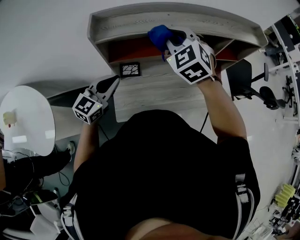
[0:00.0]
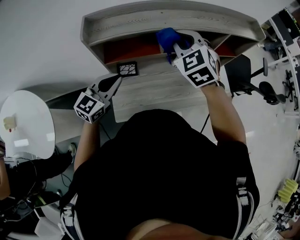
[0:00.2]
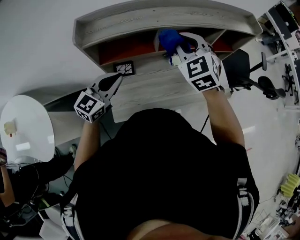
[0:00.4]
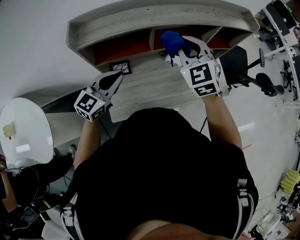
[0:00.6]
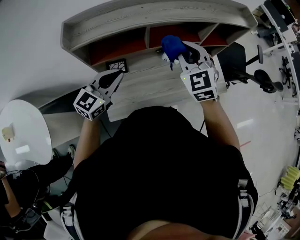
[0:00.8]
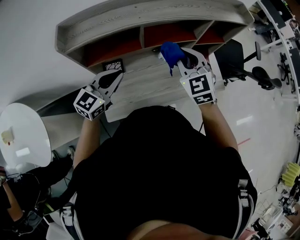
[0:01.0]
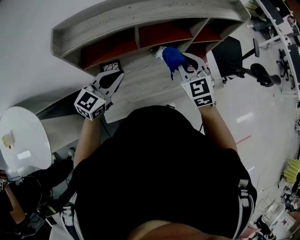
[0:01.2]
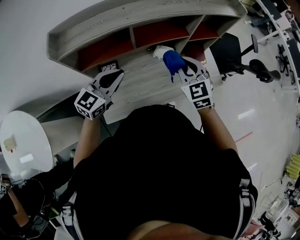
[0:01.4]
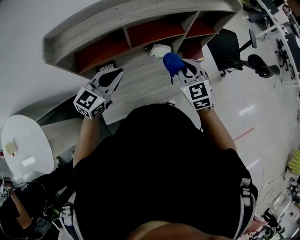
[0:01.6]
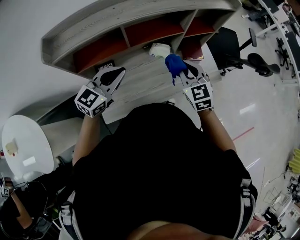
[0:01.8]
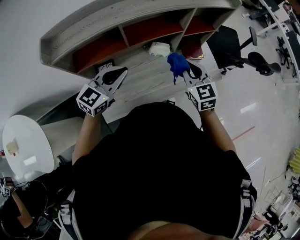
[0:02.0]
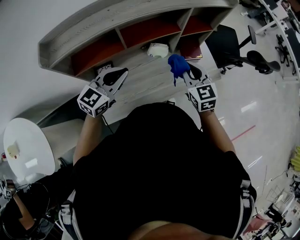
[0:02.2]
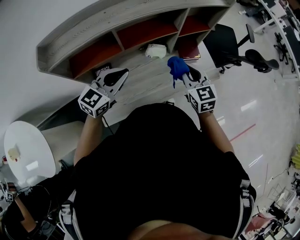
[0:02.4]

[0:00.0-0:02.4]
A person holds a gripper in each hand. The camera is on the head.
0:00.0 to 0:01.2: The right gripper moves to the right and downward, about 20 cm, and turns by approximately 20 degrees; the left gripper moves to the right and forward, roughly 15 cm.
0:01.2 to 0:02.4: The left gripper goes some 5 cm to the right, while the right gripper goes approximately 10 cm to the right and downward, and changes its angle by some 20 degrees.

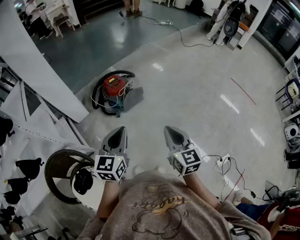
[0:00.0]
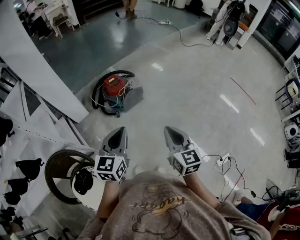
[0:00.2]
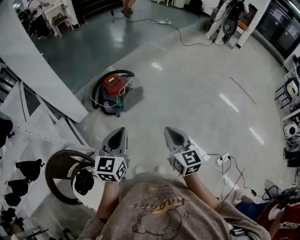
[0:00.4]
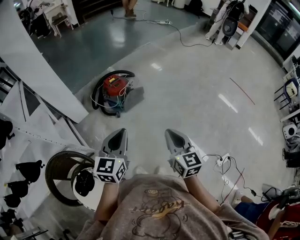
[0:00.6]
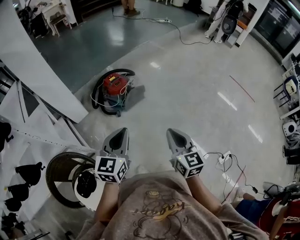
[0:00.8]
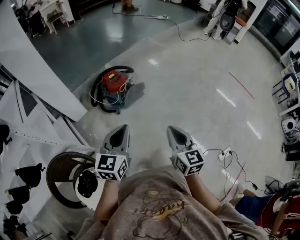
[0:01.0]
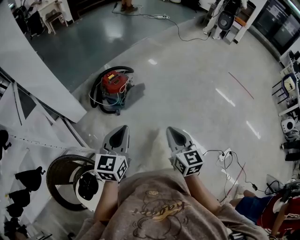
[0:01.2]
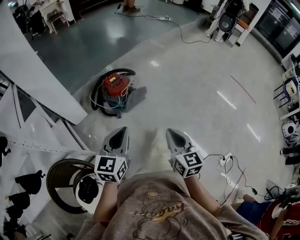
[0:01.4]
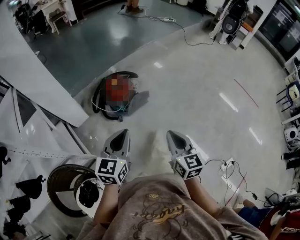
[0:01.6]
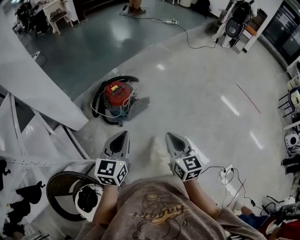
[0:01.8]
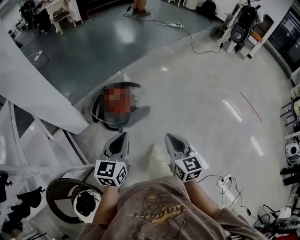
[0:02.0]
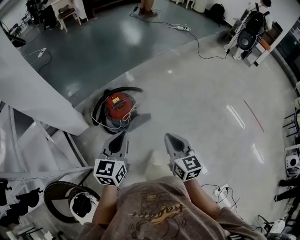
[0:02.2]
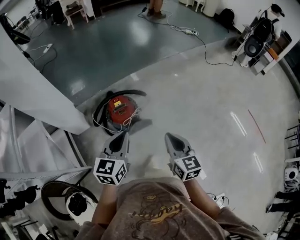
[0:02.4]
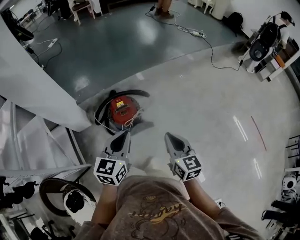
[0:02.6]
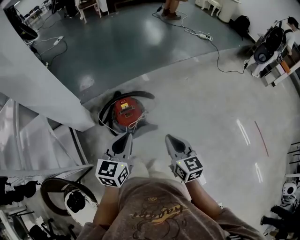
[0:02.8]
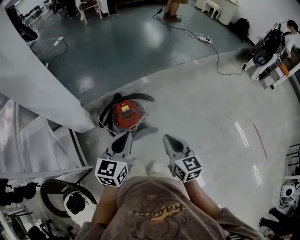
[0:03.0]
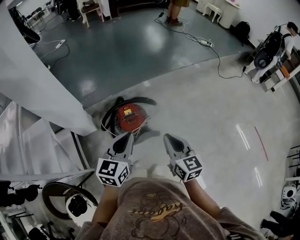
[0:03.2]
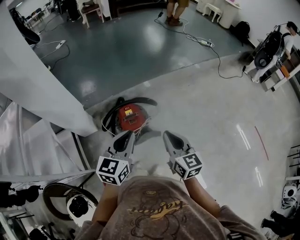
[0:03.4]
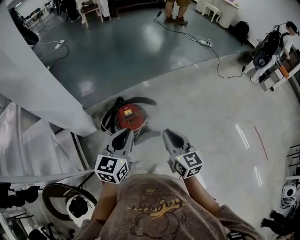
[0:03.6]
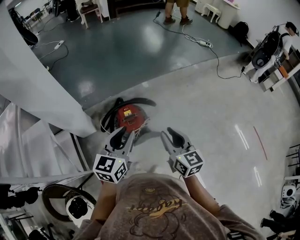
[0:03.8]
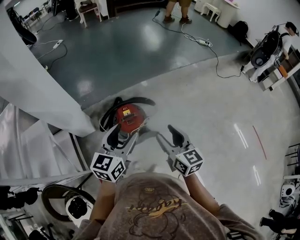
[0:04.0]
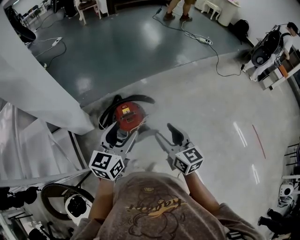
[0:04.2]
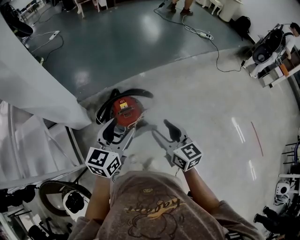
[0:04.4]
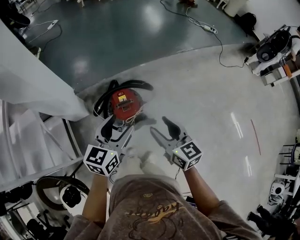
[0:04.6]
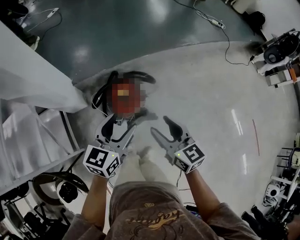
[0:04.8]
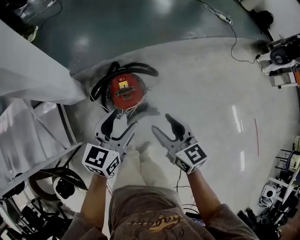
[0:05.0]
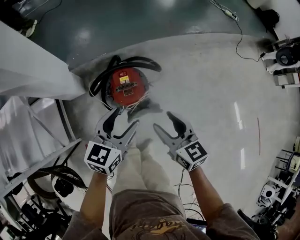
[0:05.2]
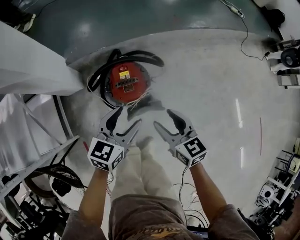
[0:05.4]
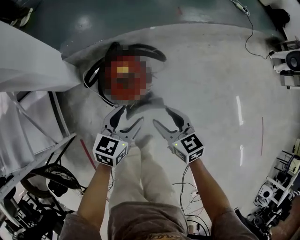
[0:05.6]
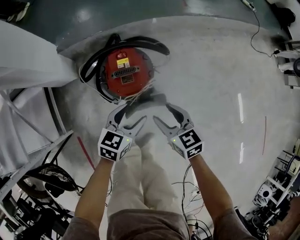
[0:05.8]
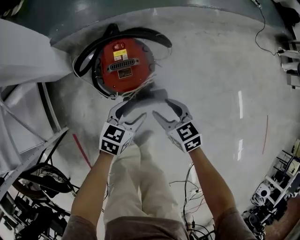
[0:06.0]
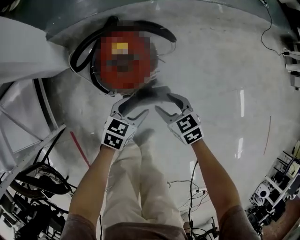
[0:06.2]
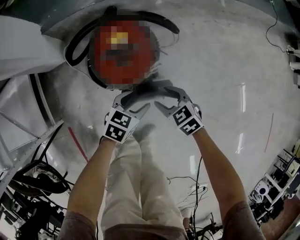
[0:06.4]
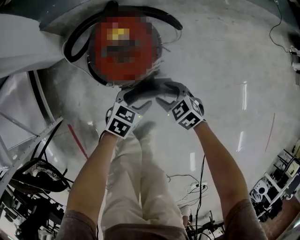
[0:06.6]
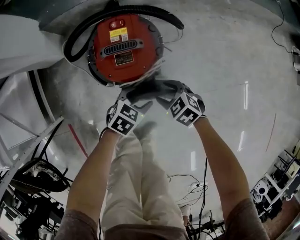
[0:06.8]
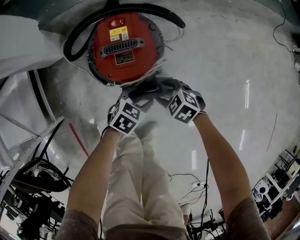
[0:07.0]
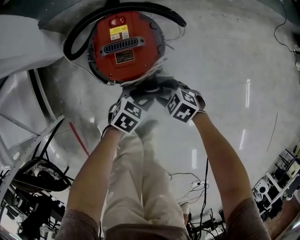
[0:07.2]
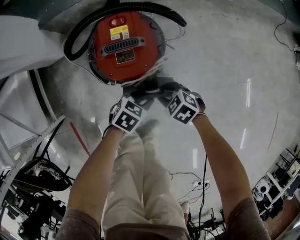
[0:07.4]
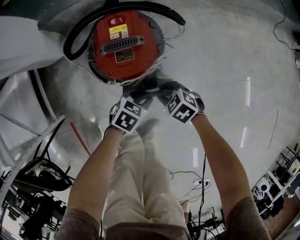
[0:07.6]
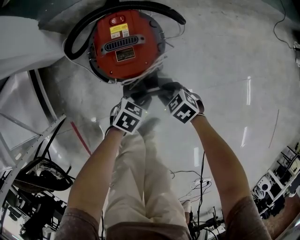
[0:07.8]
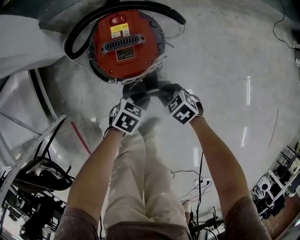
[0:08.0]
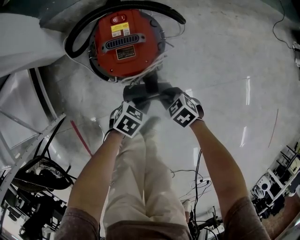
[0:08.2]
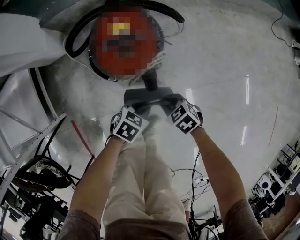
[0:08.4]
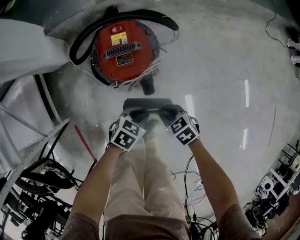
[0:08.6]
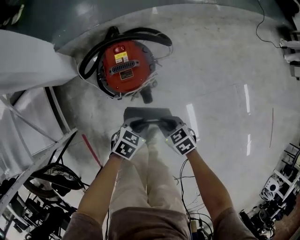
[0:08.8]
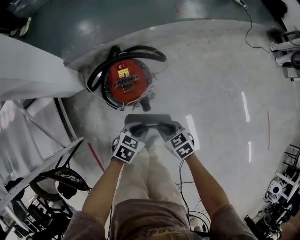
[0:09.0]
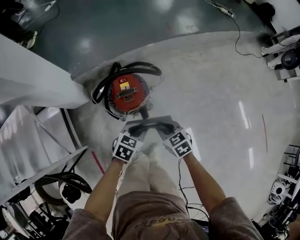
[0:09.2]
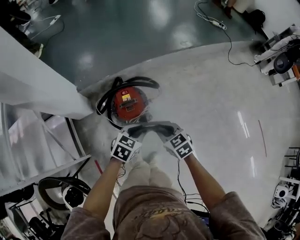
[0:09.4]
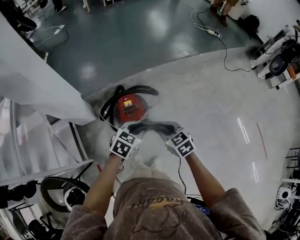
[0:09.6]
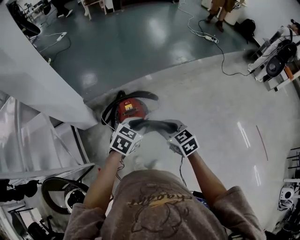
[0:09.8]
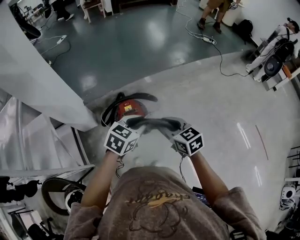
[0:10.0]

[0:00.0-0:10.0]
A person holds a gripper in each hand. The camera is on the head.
0:00.0 to 0:01.4: The right gripper goes some 5 cm to the left. Meanwhile the left gripper heads to the left and forward, covering some 10 cm.
0:01.4 to 0:02.8: The grippers both shift forward by some 30 cm. The right gripper rotates some 20 degrees.
0:02.8 to 0:04.2: The left gripper heads forward, covering approximately 5 cm, and opens, while the right gripper shifts some 10 cm forward and to the left, and opens up.
0:04.2 to 0:05.8: Both grippers travel together downward, approximately 35 cm. The right gripper swivels approximately 30 degrees, while the left gripper swivels about 30 degrees.
0:05.8 to 0:07.2: Both grippers travel together downward, roughly 25 cm. The right gripper turns by about 50 degrees; the left gripper swivels some 30 degrees.
0:07.2 to 0:08.6: The right gripper moves some 10 cm, turns by approximately 20 degrees, and closes. The left gripper shifts by roughly 10 cm, and closes.
0:08.6 to 0:10.0: The grippers both shift upward by roughly 50 cm. The right gripper tilts its fingers about 30 degrees upward. The left gripper changes its angle by approximately 30 degrees.

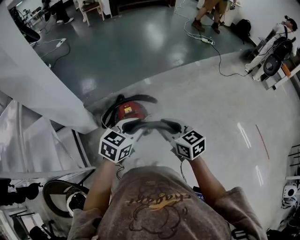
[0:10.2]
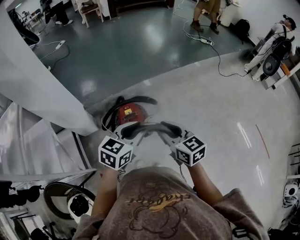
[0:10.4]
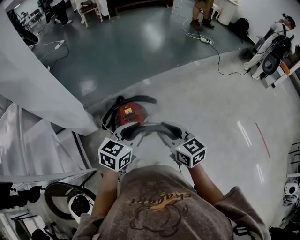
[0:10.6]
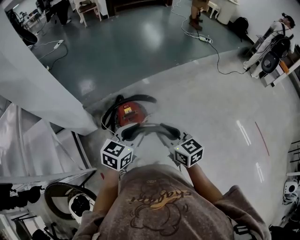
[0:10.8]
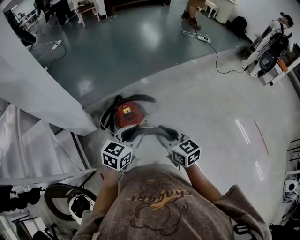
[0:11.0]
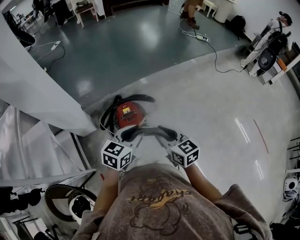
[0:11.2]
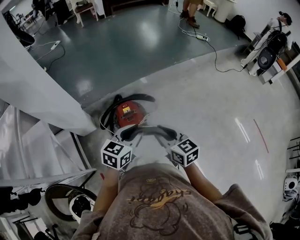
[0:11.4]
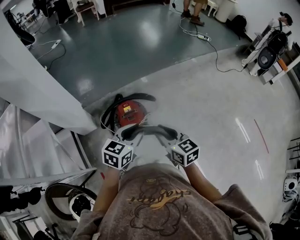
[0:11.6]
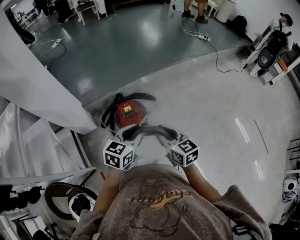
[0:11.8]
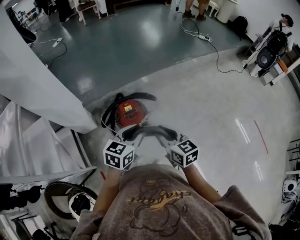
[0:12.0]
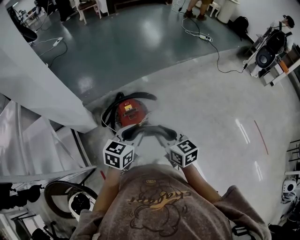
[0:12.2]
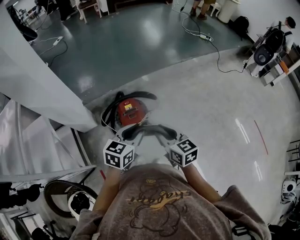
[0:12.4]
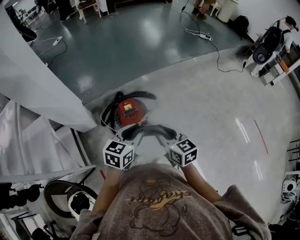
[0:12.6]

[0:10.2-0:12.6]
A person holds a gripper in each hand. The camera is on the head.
0:10.2 to 0:12.6: The grippers make only small movements.

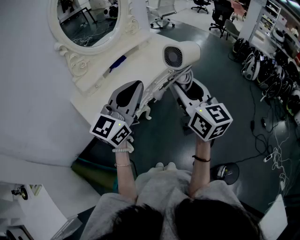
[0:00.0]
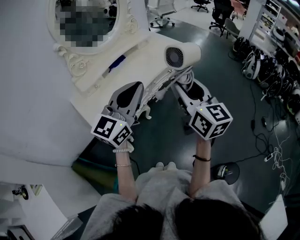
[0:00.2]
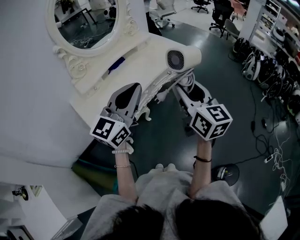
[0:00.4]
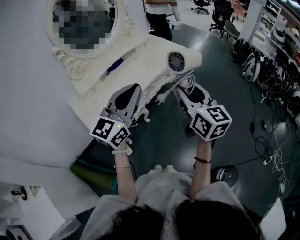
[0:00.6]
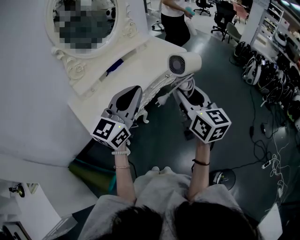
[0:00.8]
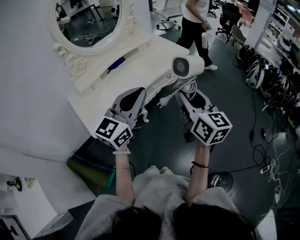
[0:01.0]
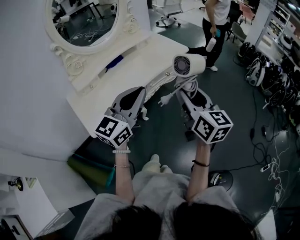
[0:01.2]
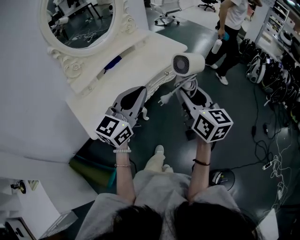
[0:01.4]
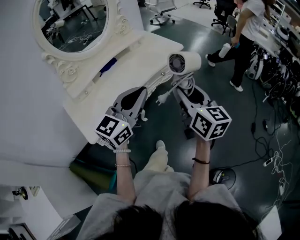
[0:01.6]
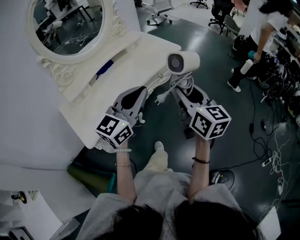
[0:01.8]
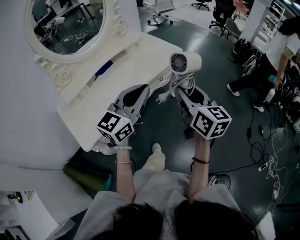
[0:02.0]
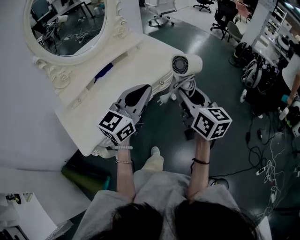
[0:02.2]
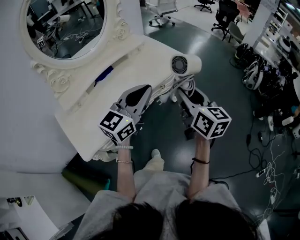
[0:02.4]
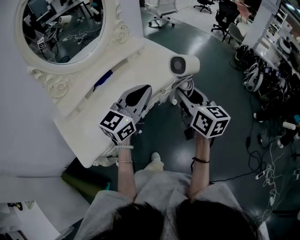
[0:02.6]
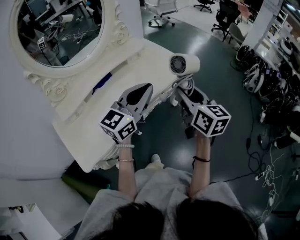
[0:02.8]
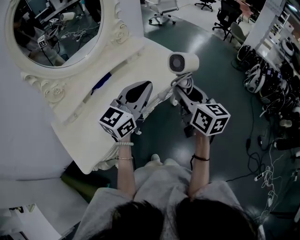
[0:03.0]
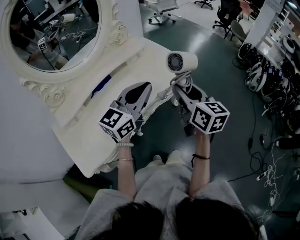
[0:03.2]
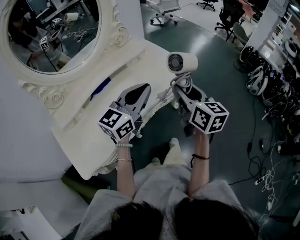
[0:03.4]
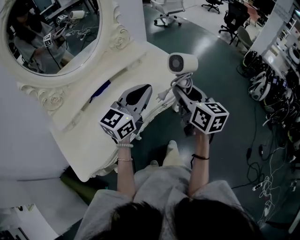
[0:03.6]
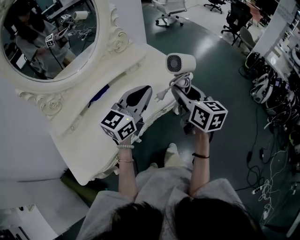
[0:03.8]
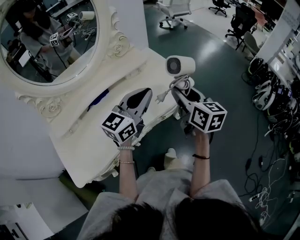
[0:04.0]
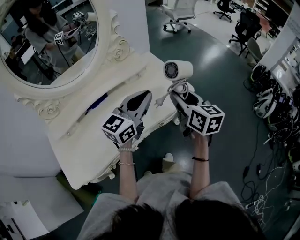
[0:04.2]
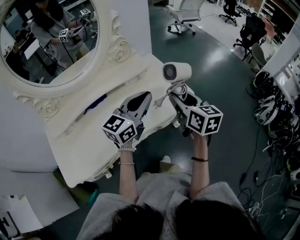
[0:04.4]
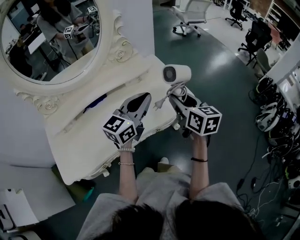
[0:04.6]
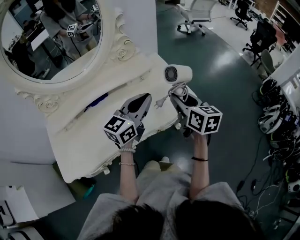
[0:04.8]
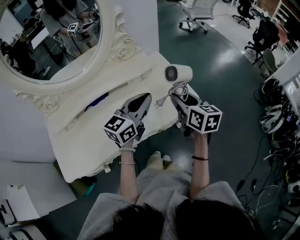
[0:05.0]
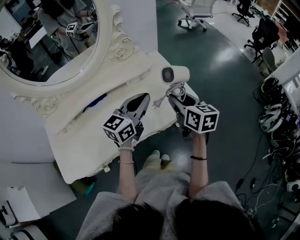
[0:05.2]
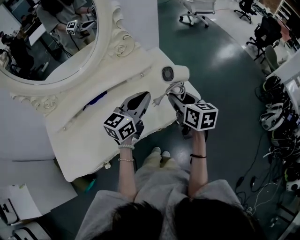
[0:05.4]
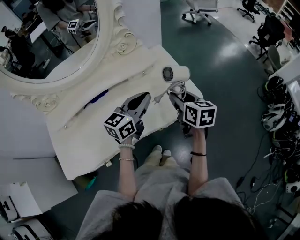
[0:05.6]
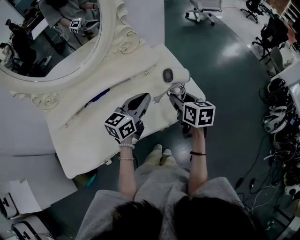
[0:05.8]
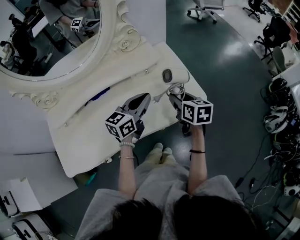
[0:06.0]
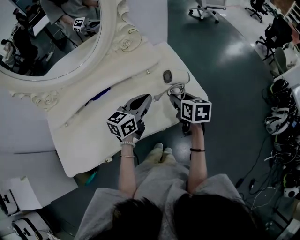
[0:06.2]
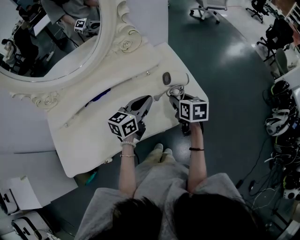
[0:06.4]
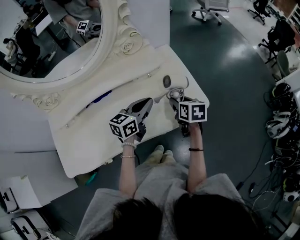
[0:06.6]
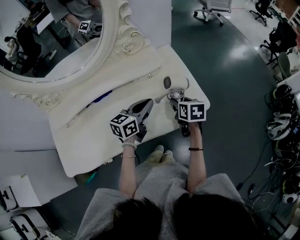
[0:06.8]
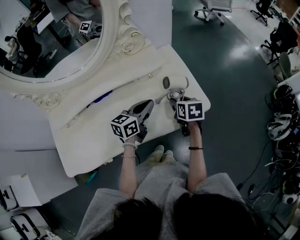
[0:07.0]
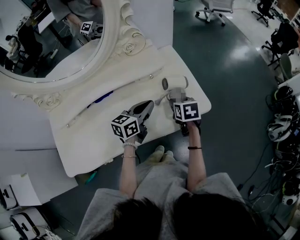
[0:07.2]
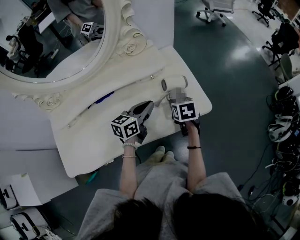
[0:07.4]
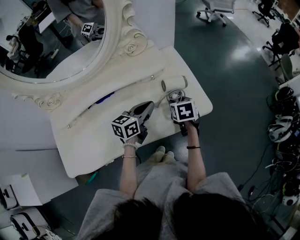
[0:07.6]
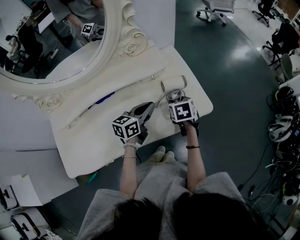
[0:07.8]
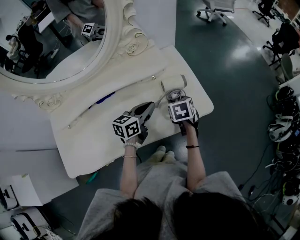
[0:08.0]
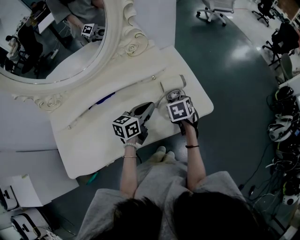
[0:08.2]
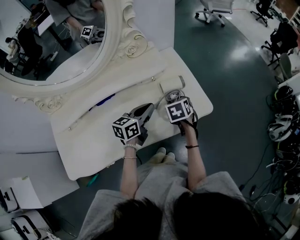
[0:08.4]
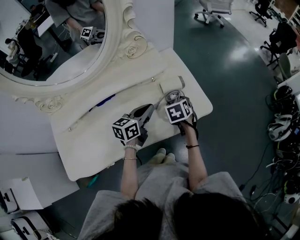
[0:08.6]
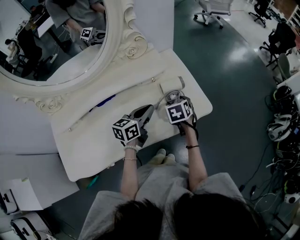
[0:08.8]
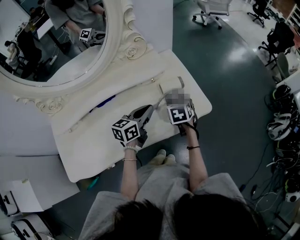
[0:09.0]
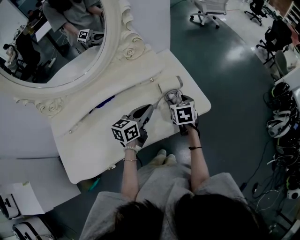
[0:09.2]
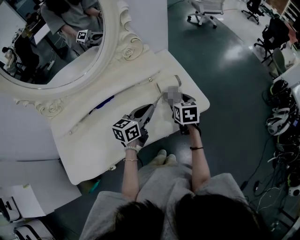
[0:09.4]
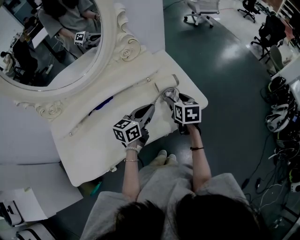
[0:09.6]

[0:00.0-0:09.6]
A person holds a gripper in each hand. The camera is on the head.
0:00.0 to 0:01.6: Both grippers travel together to the right, forward and downward, about 15 cm.
0:01.6 to 0:03.2: The grippers both shift forward by some 25 cm.
0:03.2 to 0:04.8: Both grippers travel together forward, roughly 20 cm.
0:04.8 to 0:06.4: Both grippers travel together downward and forward, some 15 cm. The right gripper changes its angle by roughly 20 degrees.
0:06.4 to 0:08.0: The left gripper changes place by some 5 cm. Meanwhile the right gripper travels downward by roughly 5 cm, and changes its angle by approximately 20 degrees.
0:08.0 to 0:09.6: The right gripper shifts about 5 cm upward, and rotates about 20 degrees.
